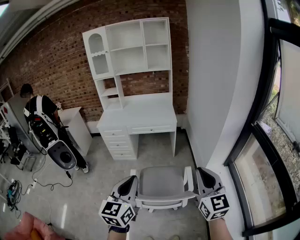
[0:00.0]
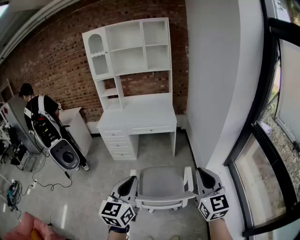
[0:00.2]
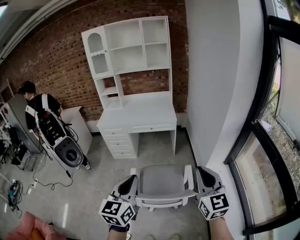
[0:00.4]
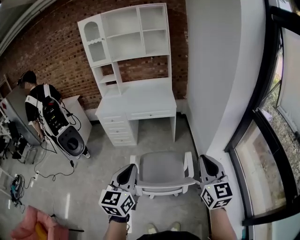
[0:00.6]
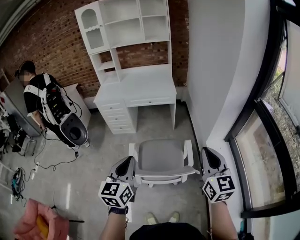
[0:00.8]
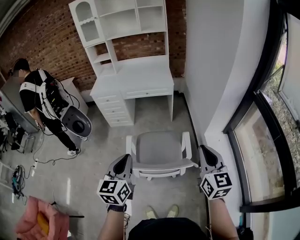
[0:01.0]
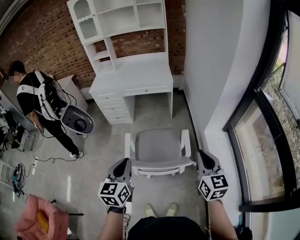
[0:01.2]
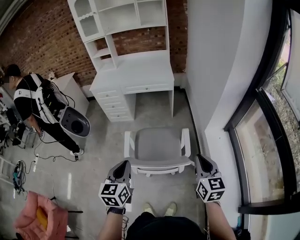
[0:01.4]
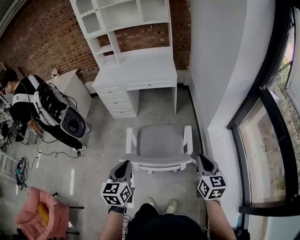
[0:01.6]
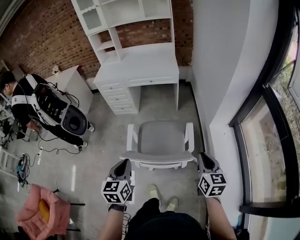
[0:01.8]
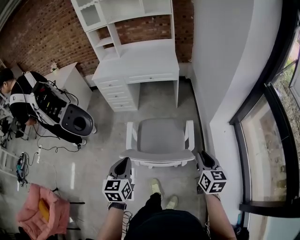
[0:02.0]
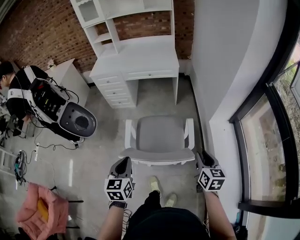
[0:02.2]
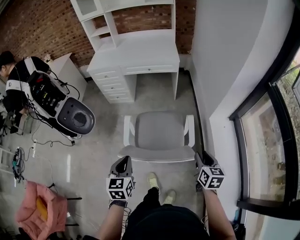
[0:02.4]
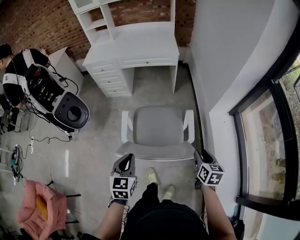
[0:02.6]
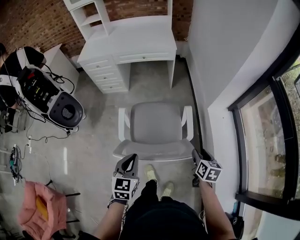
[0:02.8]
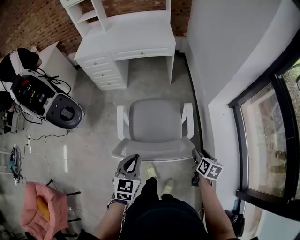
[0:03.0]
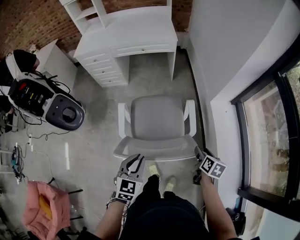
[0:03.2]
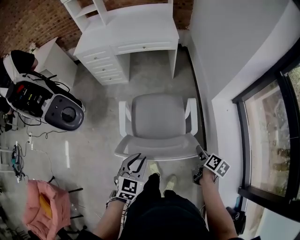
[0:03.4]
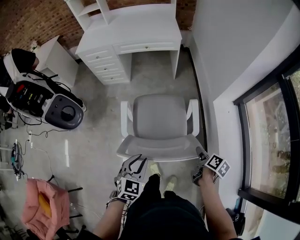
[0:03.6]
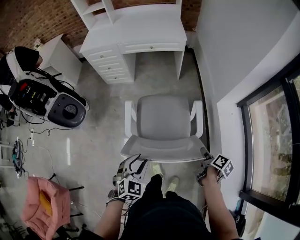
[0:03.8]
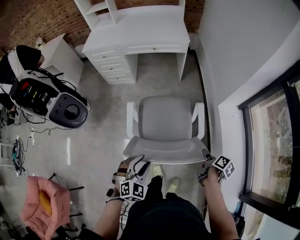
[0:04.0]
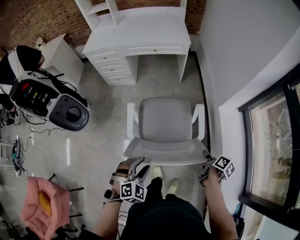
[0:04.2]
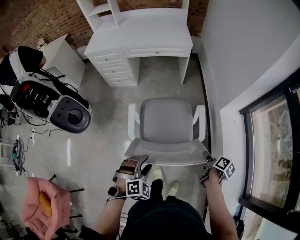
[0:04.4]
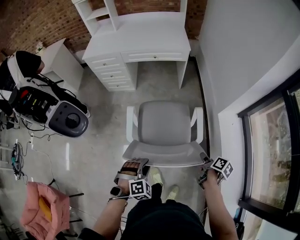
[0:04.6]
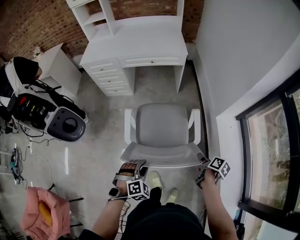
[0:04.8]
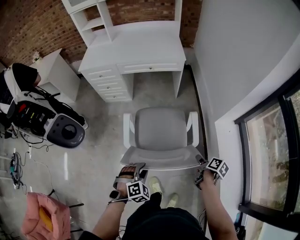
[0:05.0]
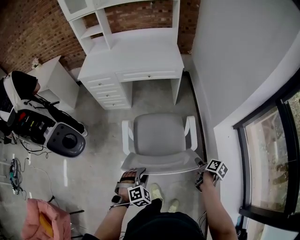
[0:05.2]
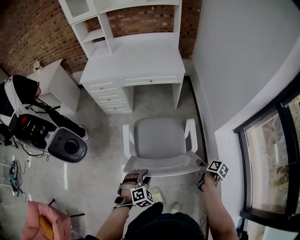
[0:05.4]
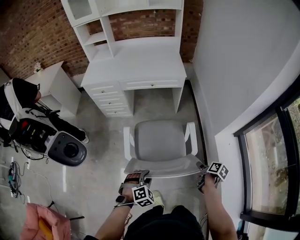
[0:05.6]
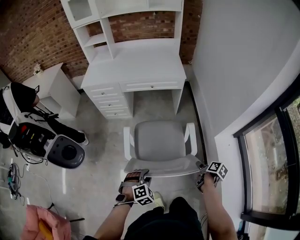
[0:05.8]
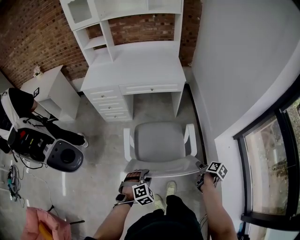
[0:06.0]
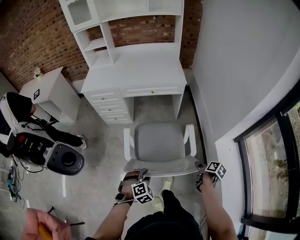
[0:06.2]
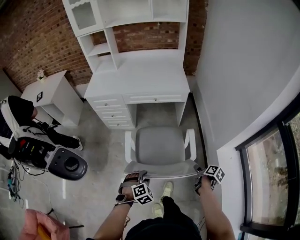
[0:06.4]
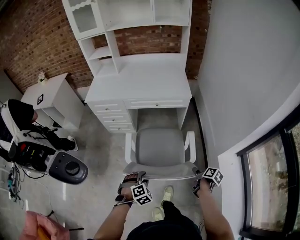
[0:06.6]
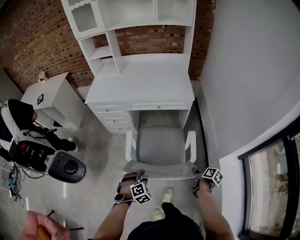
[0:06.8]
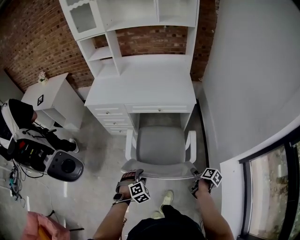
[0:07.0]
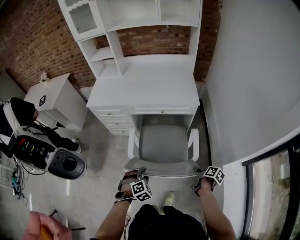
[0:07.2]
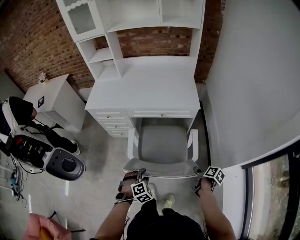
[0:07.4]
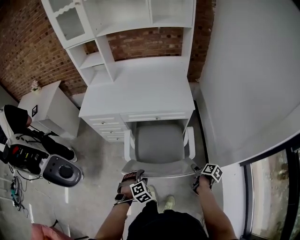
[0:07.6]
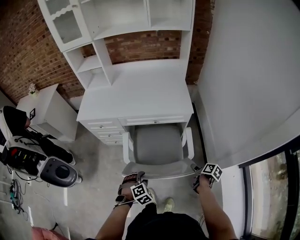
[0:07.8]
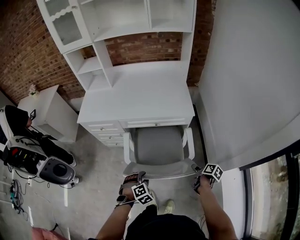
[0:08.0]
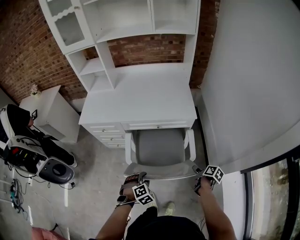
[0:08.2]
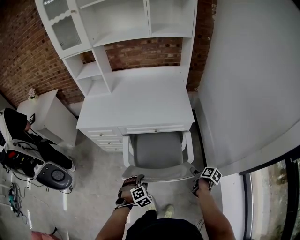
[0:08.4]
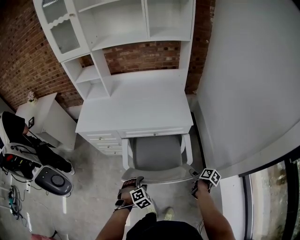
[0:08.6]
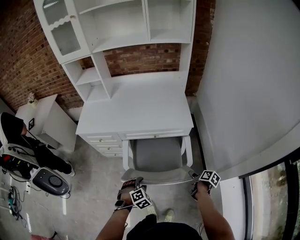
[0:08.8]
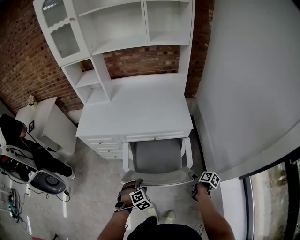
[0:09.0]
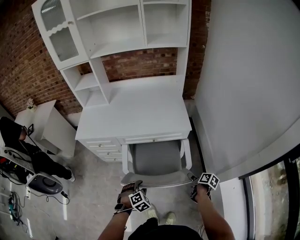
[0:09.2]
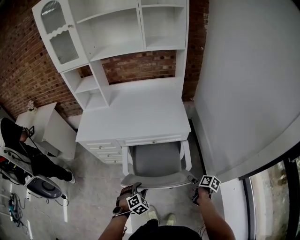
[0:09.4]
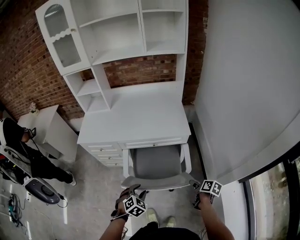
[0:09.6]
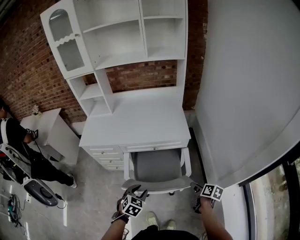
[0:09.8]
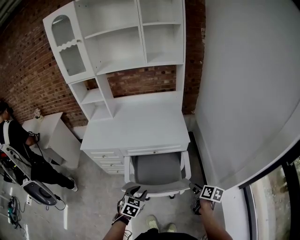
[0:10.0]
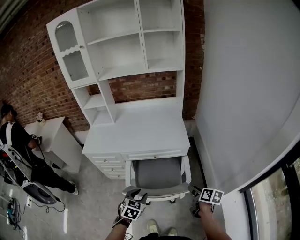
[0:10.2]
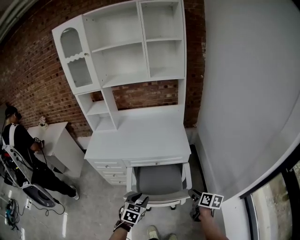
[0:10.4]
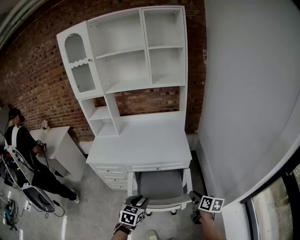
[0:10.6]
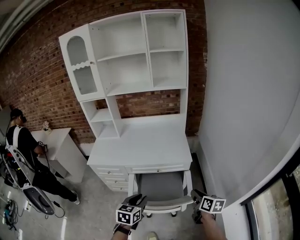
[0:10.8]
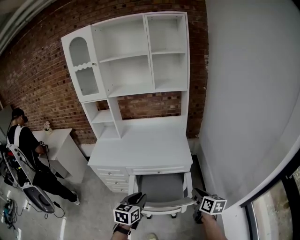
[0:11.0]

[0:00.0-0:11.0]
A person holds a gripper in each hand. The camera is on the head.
0.0 to 1.6 s: Both grippers travel together downward, approximately 20 cm. The left gripper turns by approximately 20 degrees. The right gripper swivels some 30 degrees.
1.6 to 3.2 s: The right gripper travels downward by approximately 20 cm, swivels about 40 degrees, and opens its fingers; the left gripper is displaced downward by approximately 15 cm, and rotates some 30 degrees.
3.2 to 4.8 s: The right gripper heads forward, covering roughly 5 cm, and rotates approximately 30 degrees. The left gripper heads downward and forward, covering about 10 cm, rolls clockwise, seen from behind, by roughly 40 degrees, and opens.
4.8 to 6.2 s: Both grippers travel together forward, roughly 10 cm.
6.2 to 7.8 s: Both grippers move forward, about 25 cm.
7.8 to 9.4 s: The right gripper moves approximately 5 cm. The left gripper shifts approximately 5 cm forward.
9.4 to 11.0 s: Both grippers move upward, about 20 cm. The right gripper rotates approximately 40 degrees, and closes up, while the left gripper rolls counterclockwise, seen from behind, by approximately 50 degrees, and closes up.

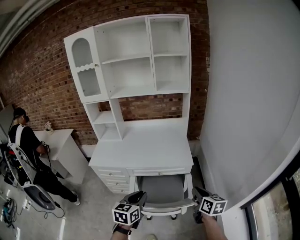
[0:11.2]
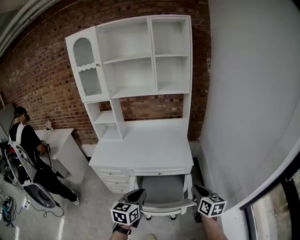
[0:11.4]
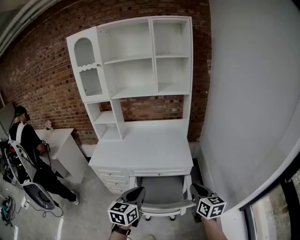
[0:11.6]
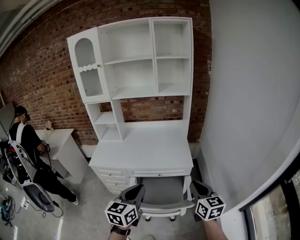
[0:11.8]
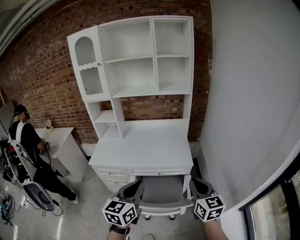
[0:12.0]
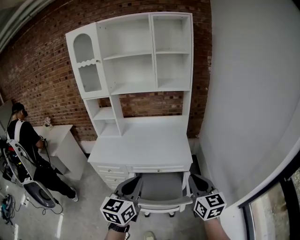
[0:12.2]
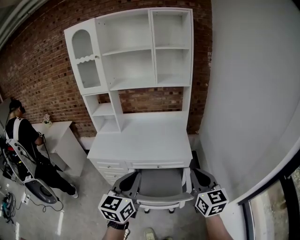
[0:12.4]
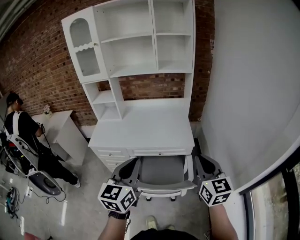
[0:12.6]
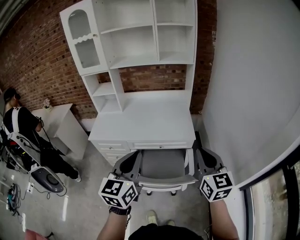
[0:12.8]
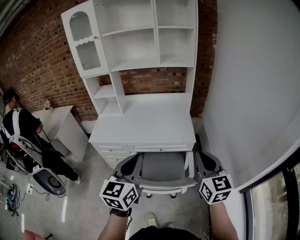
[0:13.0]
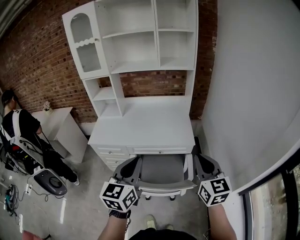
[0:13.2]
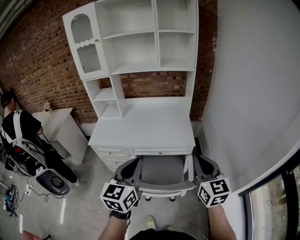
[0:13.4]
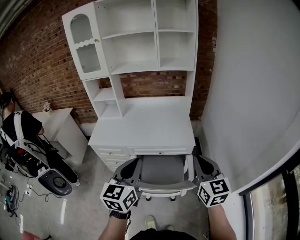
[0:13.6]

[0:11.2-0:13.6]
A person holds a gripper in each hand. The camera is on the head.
11.2 to 12.4 s: Both grippers move upward, approximately 15 cm. The right gripper changes its angle by roughly 30 degrees.
12.4 to 13.6 s: The grippers stay close to where they were, moving slightly.

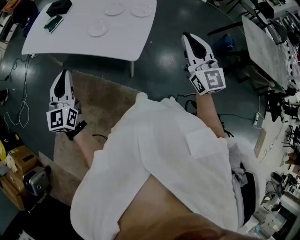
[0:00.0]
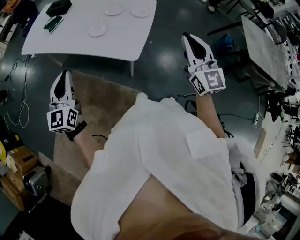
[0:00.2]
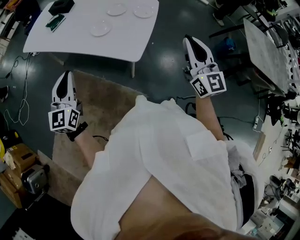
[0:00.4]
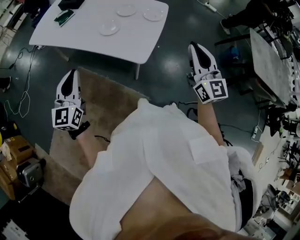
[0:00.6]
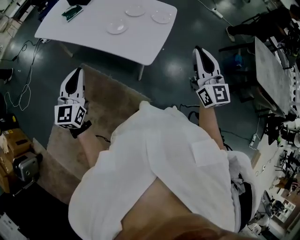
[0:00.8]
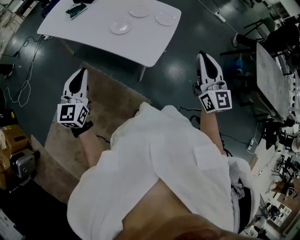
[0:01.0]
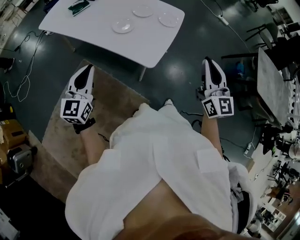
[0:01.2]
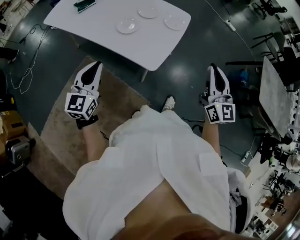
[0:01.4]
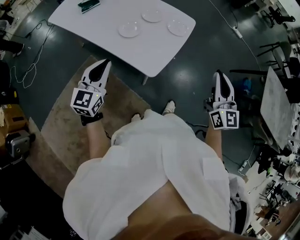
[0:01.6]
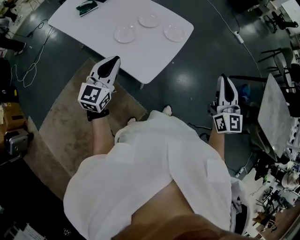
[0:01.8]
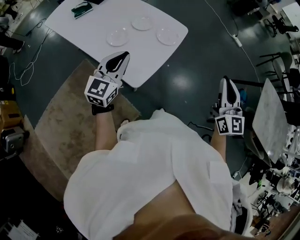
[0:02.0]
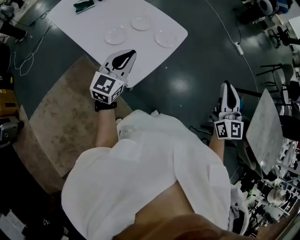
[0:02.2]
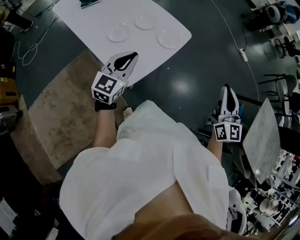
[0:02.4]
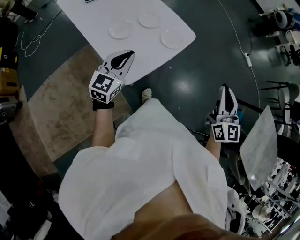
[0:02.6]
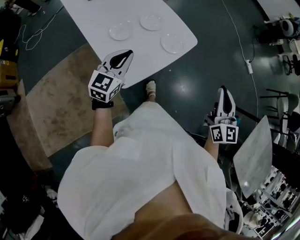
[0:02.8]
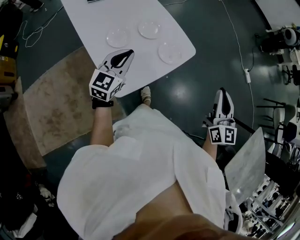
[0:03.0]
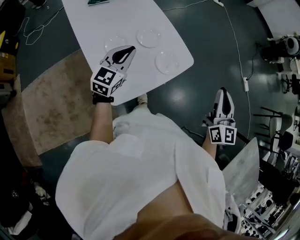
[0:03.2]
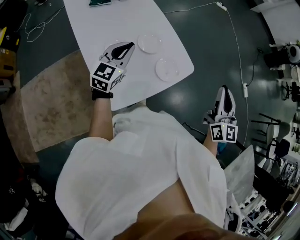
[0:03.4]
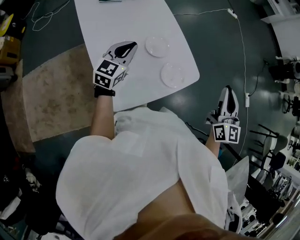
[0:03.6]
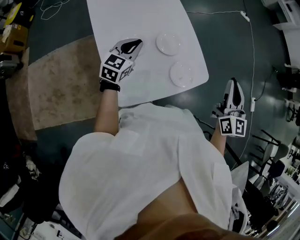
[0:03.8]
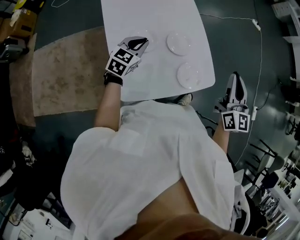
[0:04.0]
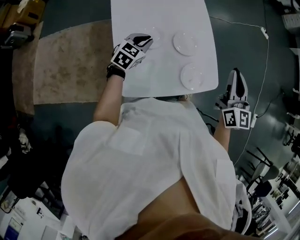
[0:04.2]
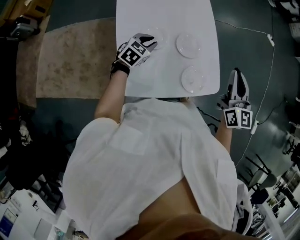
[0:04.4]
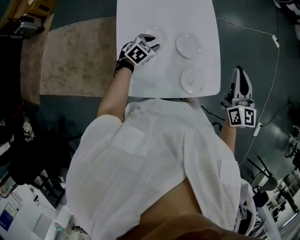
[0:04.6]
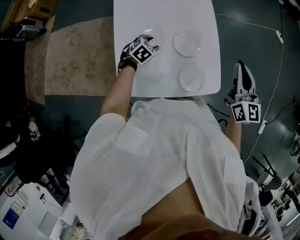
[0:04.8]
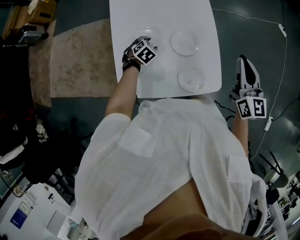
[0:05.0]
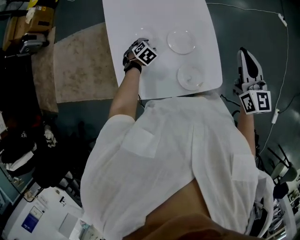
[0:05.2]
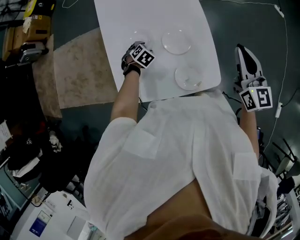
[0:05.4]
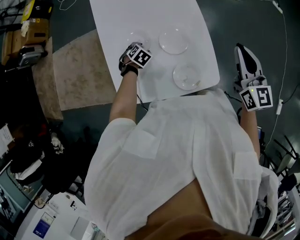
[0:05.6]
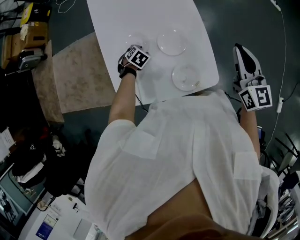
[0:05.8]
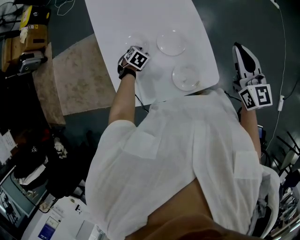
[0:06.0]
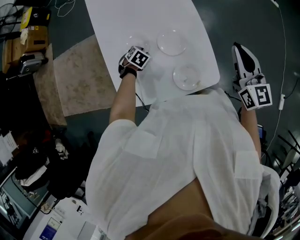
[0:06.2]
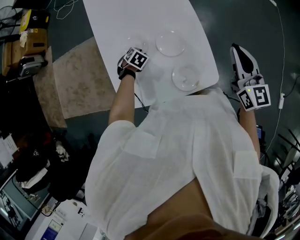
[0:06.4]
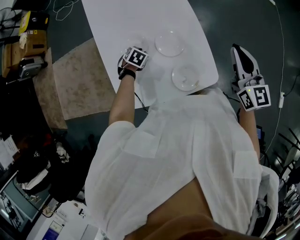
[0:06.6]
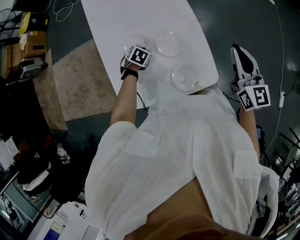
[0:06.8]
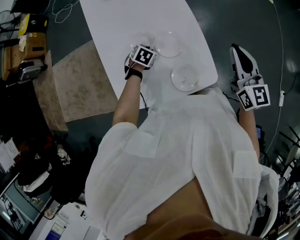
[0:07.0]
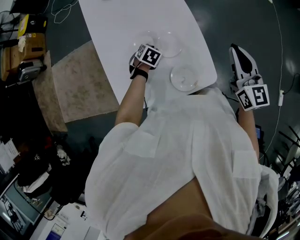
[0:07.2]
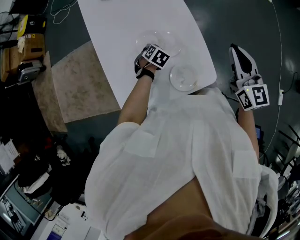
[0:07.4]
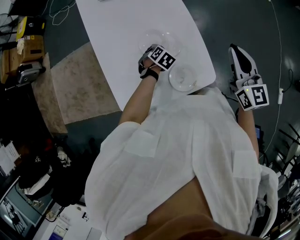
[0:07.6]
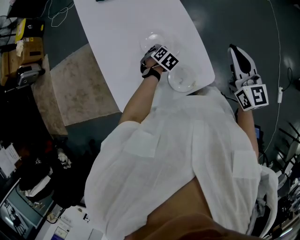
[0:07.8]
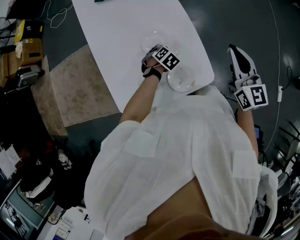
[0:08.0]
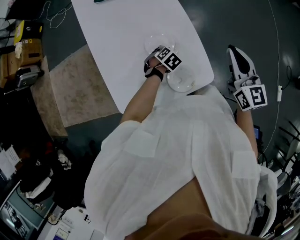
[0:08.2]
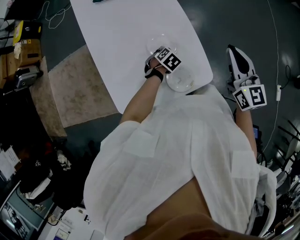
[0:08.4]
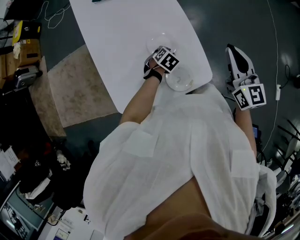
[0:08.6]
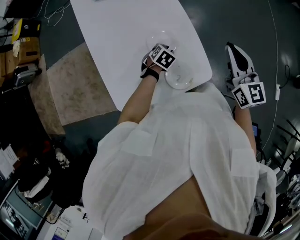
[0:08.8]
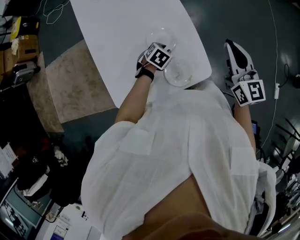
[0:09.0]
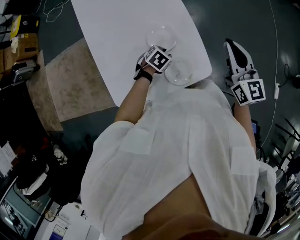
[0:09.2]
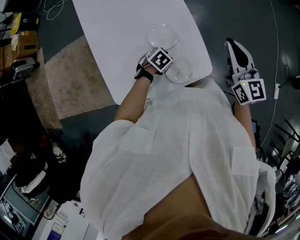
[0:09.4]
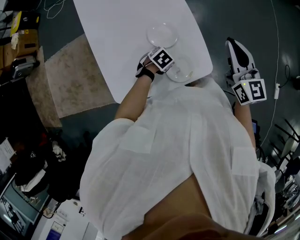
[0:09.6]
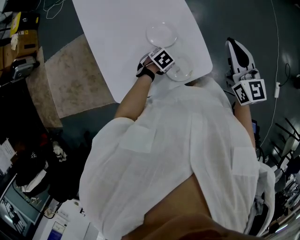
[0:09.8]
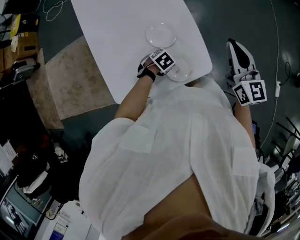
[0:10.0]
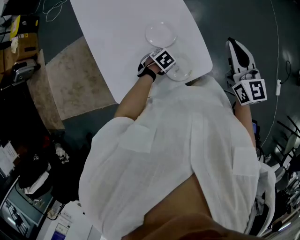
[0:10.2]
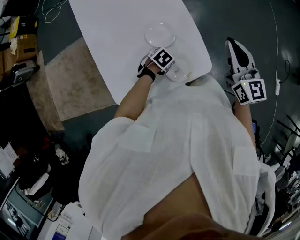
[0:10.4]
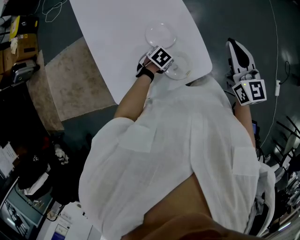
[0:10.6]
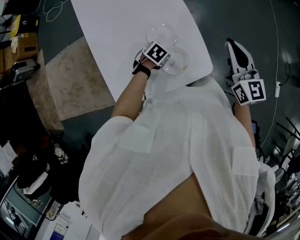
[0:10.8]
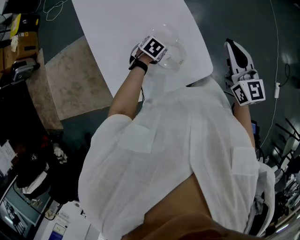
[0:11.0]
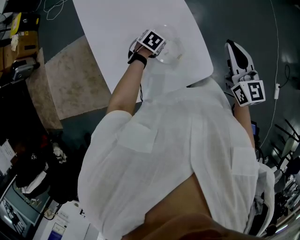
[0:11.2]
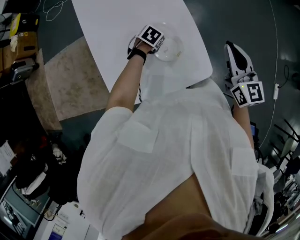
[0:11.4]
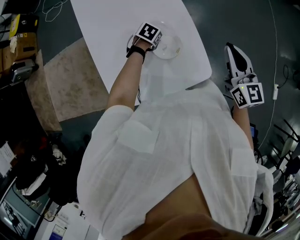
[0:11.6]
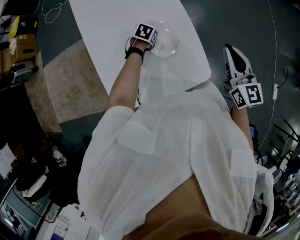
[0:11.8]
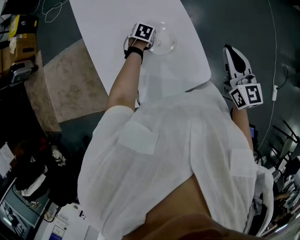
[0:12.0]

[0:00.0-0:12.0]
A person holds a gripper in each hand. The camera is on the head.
0.0 to 1.6 s: The left gripper heads to the right and forward, covering approximately 10 cm; the right gripper goes some 10 cm forward and to the right.
1.6 to 3.0 s: The grippers both shift forward and to the right by approximately 30 cm.
3.0 to 4.4 s: The left gripper travels downward, forward and to the left by about 20 cm, and swivels some 30 degrees; the right gripper moves forward and to the left, roughly 30 cm, and turns by some 30 degrees.
4.4 to 6.0 s: The left gripper heads downward, covering about 15 cm, and tips its fingers downward by some 30 degrees. Meanwhile the right gripper shifts by approximately 10 cm.
6.0 to 7.6 s: The left gripper changes place by about 15 cm, and closes up.
7.6 to 9.0 s: The left gripper moves some 5 cm.
9.0 to 10.4 s: The left gripper moves some 5 cm.
10.4 to 12.0 s: The left gripper ends up approximately 20 cm from where it was, and changes its angle by some 30 degrees.
